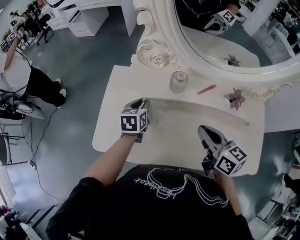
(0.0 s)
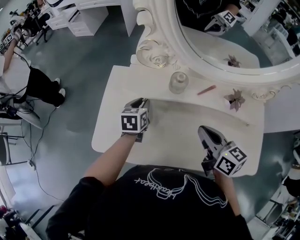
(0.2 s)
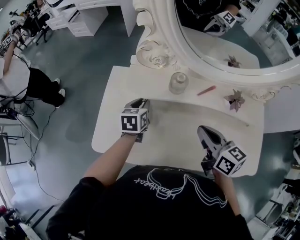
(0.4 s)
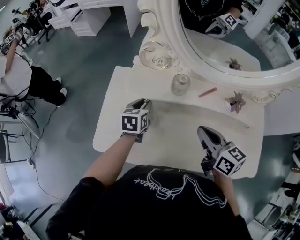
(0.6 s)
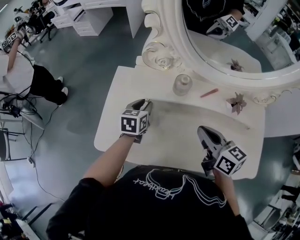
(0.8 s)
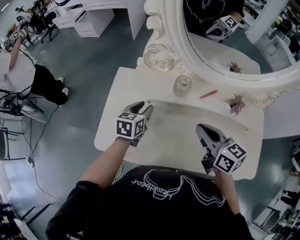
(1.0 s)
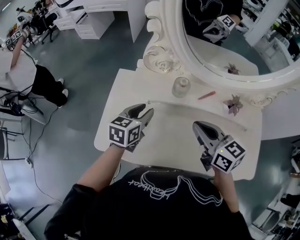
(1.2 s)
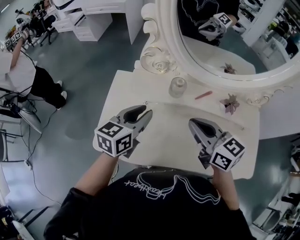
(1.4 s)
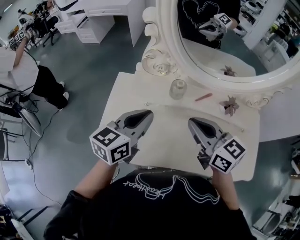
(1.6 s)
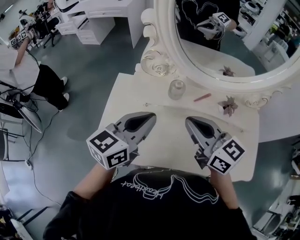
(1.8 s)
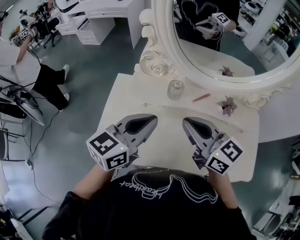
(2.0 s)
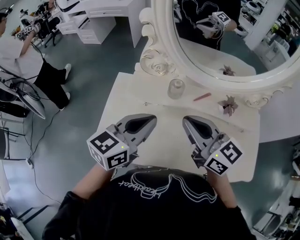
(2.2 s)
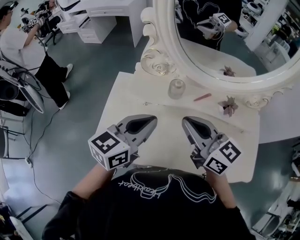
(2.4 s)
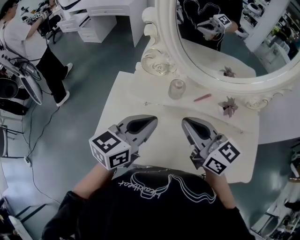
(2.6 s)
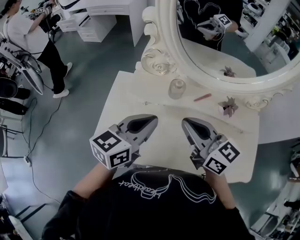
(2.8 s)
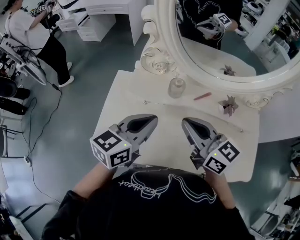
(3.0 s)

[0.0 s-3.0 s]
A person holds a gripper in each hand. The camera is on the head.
0.0 to 1.6 s: The left gripper heads upward and backward, covering roughly 20 cm, and swivels approximately 30 degrees, while the right gripper moves upward and to the left, roughly 10 cm.
1.6 to 3.0 s: The grippers move only a little.

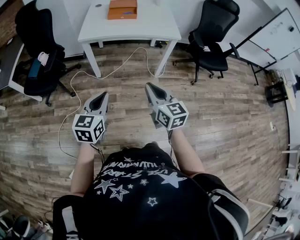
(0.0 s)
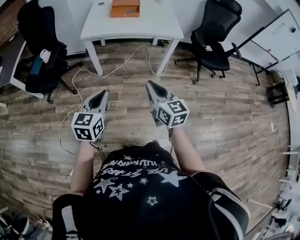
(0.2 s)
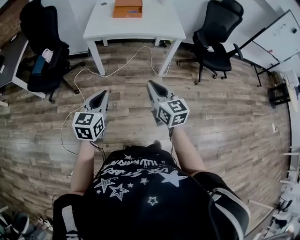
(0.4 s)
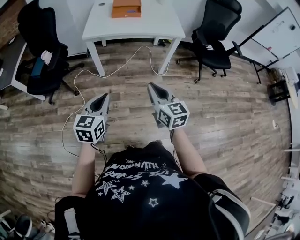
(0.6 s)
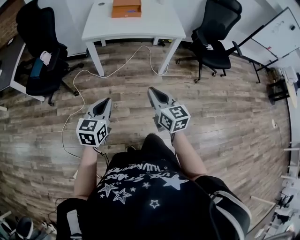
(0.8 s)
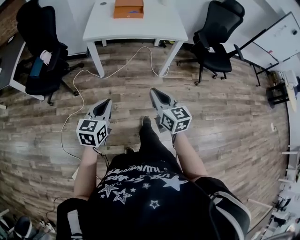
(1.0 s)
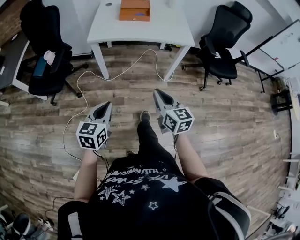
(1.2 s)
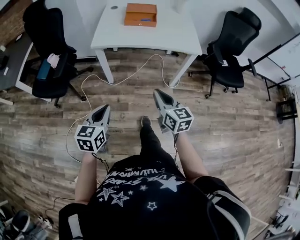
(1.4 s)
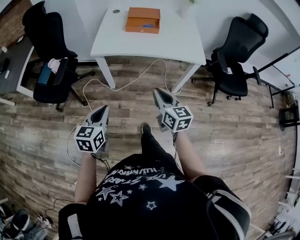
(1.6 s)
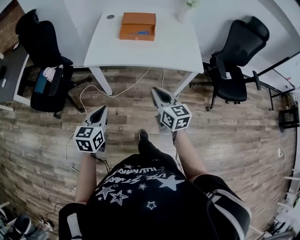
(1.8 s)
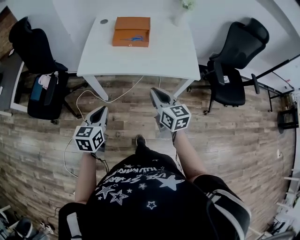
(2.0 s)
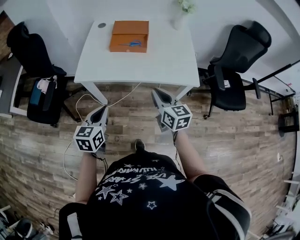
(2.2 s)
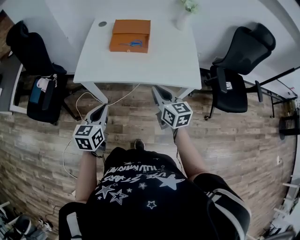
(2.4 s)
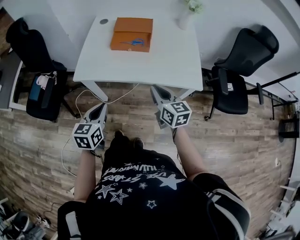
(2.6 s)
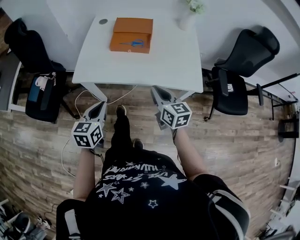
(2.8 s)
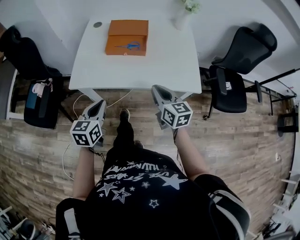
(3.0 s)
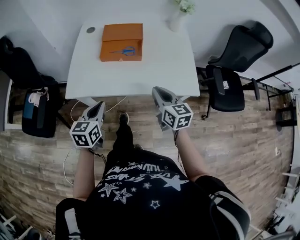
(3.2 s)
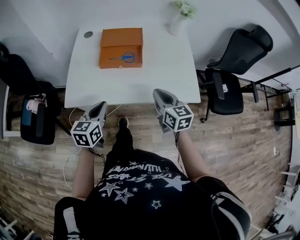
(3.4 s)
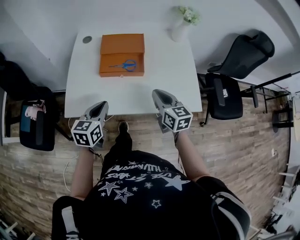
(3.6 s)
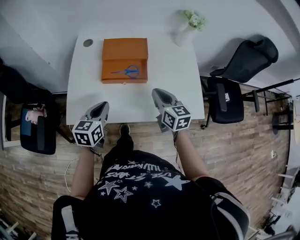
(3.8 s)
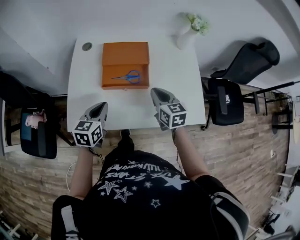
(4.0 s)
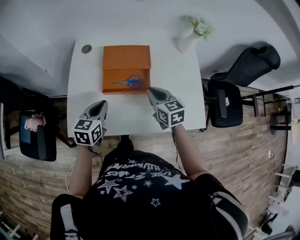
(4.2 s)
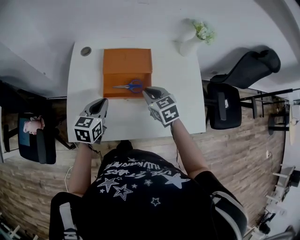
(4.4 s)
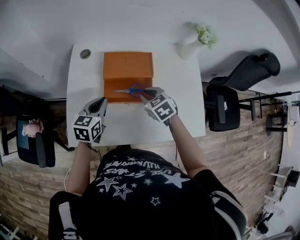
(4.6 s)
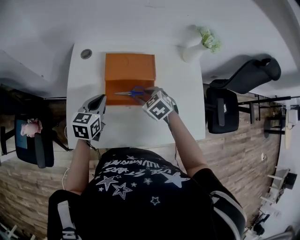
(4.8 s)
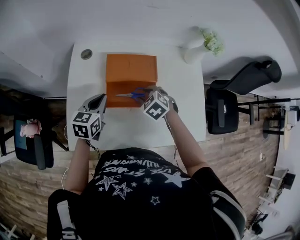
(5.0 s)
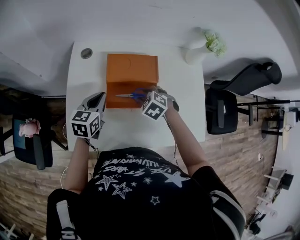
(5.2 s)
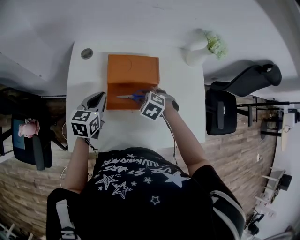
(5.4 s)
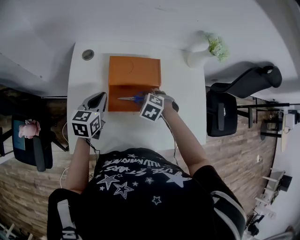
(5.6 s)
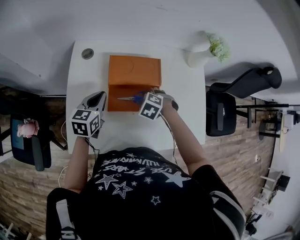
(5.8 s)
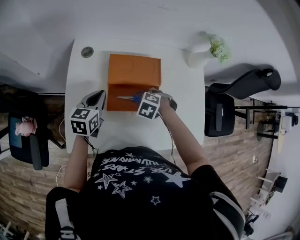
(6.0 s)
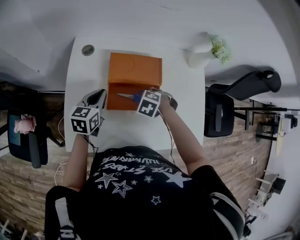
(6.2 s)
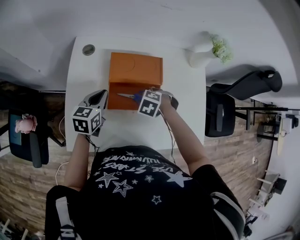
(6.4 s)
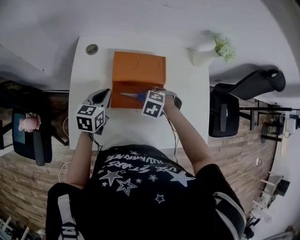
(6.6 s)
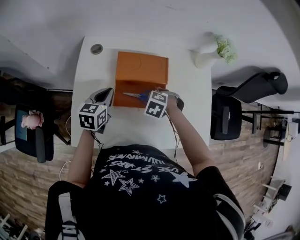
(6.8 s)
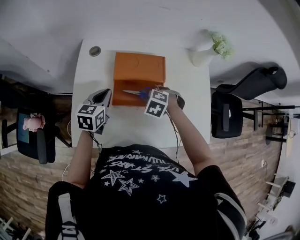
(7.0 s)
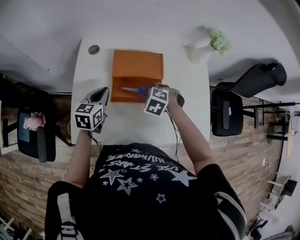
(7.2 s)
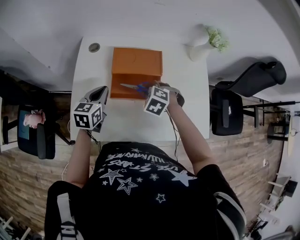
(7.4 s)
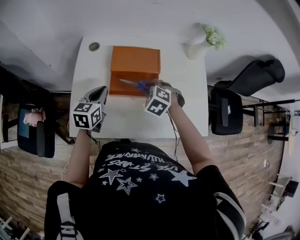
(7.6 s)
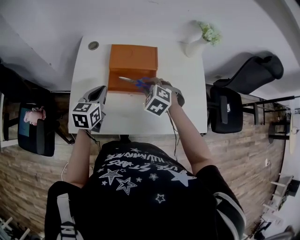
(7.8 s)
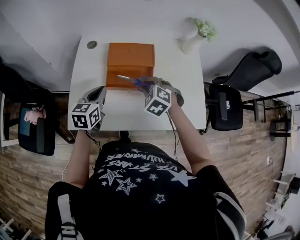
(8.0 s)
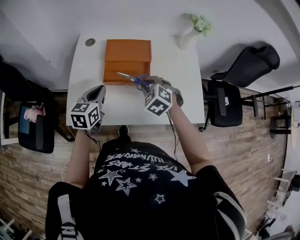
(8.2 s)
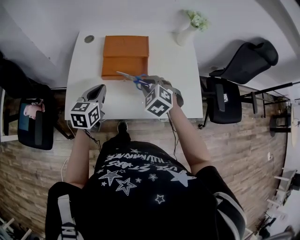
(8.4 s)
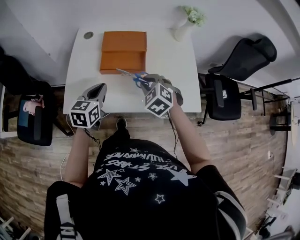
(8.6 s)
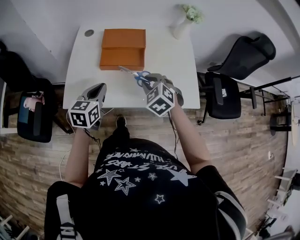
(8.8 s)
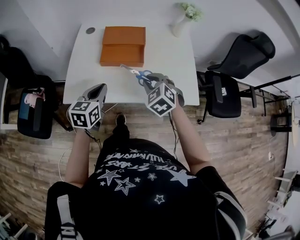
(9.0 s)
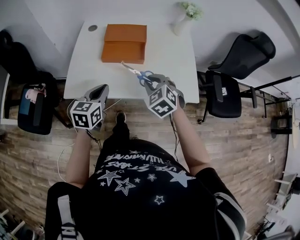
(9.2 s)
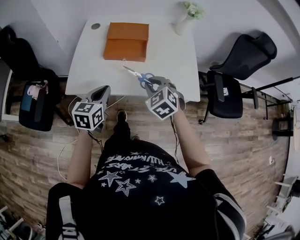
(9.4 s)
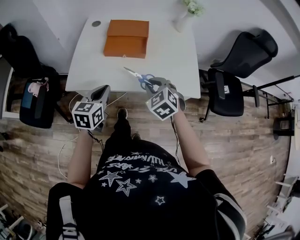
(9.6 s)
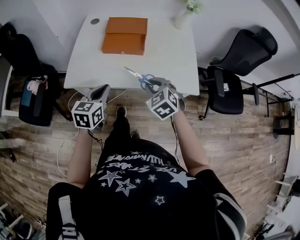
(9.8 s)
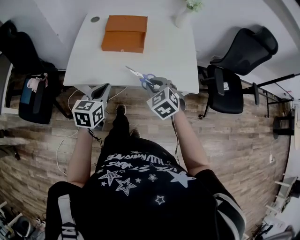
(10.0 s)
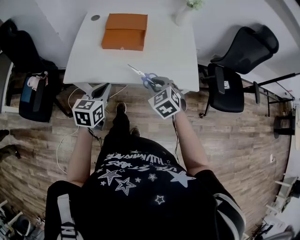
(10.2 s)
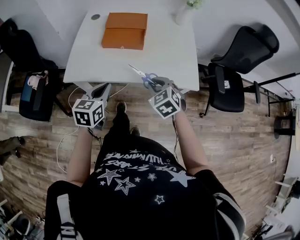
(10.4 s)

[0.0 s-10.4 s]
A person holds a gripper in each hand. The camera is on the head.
0.0 to 1.4 s: The right gripper shifts some 15 cm forward. The left gripper heads forward, to the left and downward, covering roughly 15 cm.
1.4 to 3.0 s: Both grippers are carried forward, approximately 40 cm.
3.0 to 4.4 s: Both grippers travel together forward, approximately 35 cm. The right gripper changes its angle by about 30 degrees.
4.4 to 6.0 s: The left gripper shifts by some 15 cm. Meanwhile the right gripper goes roughly 10 cm downward, and angles its fingers downward, by approximately 40 degrees.
6.0 to 7.4 s: The left gripper ends up approximately 5 cm from where it was. The right gripper travels upward by some 5 cm.
7.4 to 9.0 s: The left gripper is displaced backward by roughly 25 cm; the right gripper travels backward, upward and to the right by roughly 25 cm, and rotates about 30 degrees.
9.0 to 10.4 s: The two grippers go about 10 cm backward.

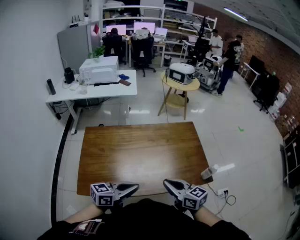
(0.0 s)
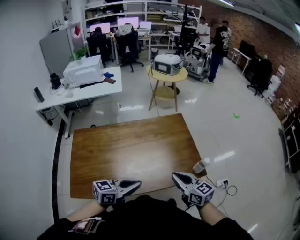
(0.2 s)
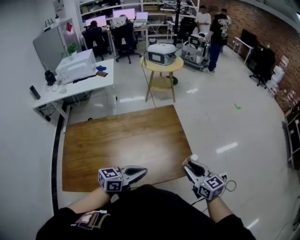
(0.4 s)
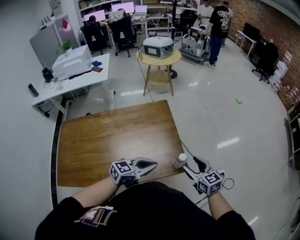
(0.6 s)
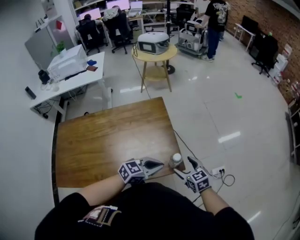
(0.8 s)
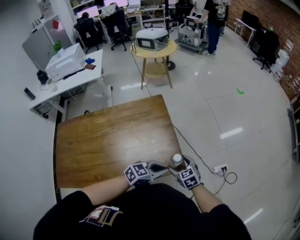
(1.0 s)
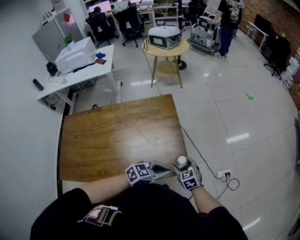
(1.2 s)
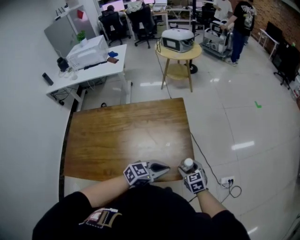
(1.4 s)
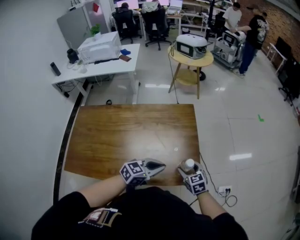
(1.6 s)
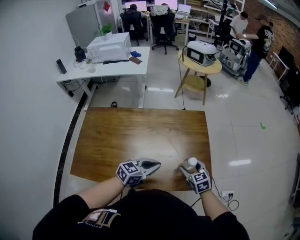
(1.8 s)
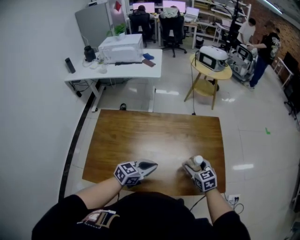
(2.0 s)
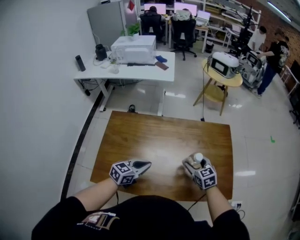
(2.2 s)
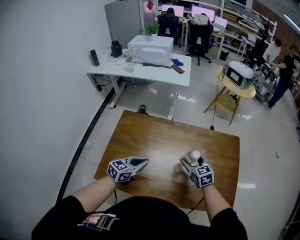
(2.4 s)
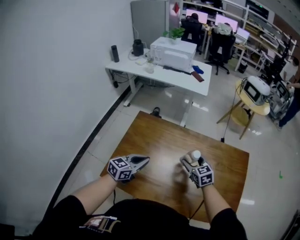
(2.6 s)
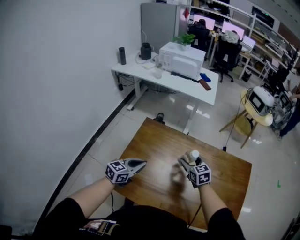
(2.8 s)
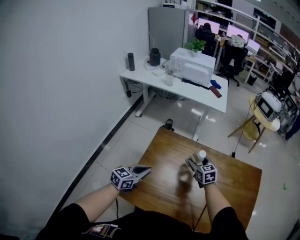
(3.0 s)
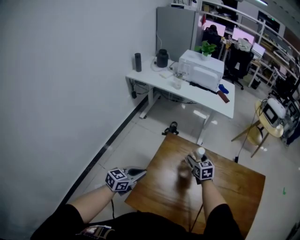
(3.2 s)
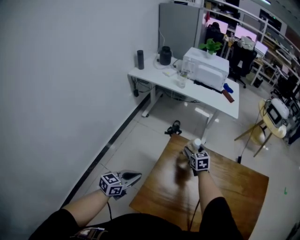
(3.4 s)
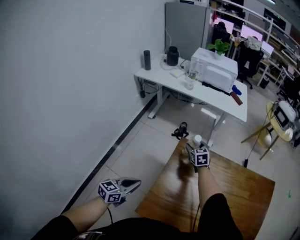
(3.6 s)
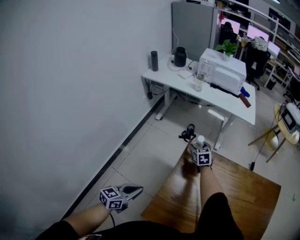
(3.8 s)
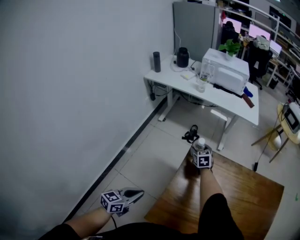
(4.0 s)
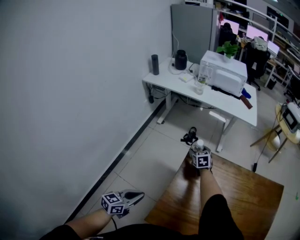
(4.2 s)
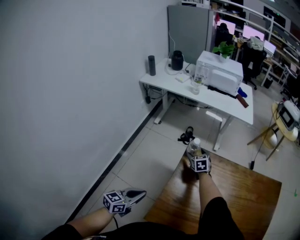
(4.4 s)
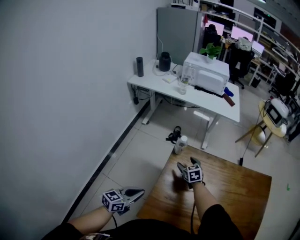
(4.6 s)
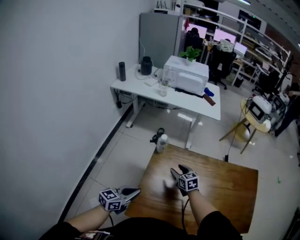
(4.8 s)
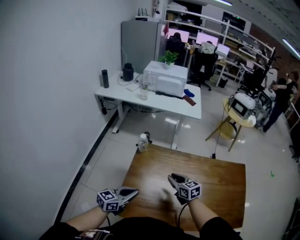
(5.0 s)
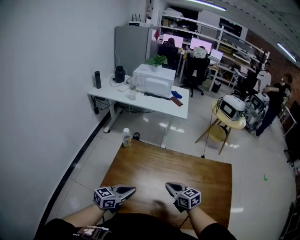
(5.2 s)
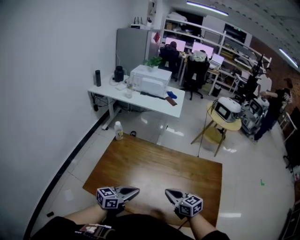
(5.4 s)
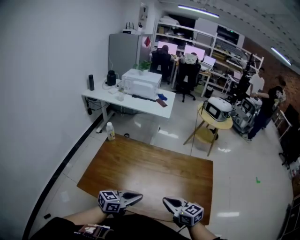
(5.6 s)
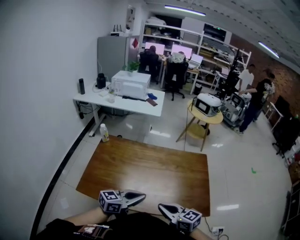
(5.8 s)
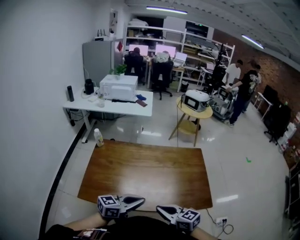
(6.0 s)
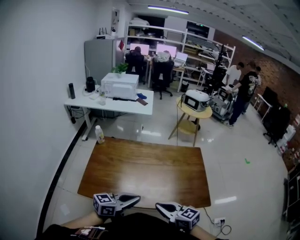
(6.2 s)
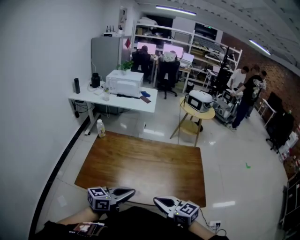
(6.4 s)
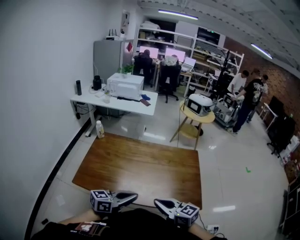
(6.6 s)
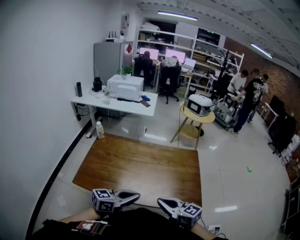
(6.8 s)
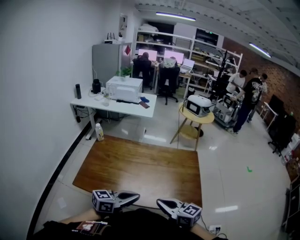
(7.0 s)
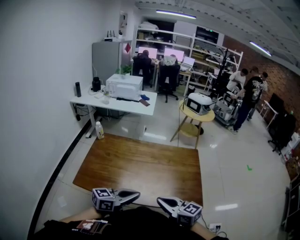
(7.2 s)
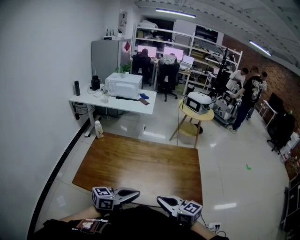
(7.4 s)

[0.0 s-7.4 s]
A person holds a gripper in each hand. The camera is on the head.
0.0 to 1.4 s: The right gripper goes approximately 40 cm forward, to the right and downward, rotates some 40 degrees, and opens. The left gripper shifts approximately 40 cm to the right, forward and downward, and changes its angle by some 20 degrees.
1.4 to 3.0 s: The two grippers travel together, roughly 70 cm. The right gripper rotates about 20 degrees. Meanwhile the left gripper rotates roughly 50 degrees.
3.0 to 4.4 s: The right gripper travels to the left and forward by roughly 30 cm. The left gripper moves to the left, about 20 cm.
4.4 to 6.0 s: Both grippers are carried to the right and backward, about 60 cm. The left gripper rotates roughly 40 degrees, while the right gripper swivels about 30 degrees, and closes up.
6.0 to 7.4 s: The right gripper is displaced to the right by some 5 cm.

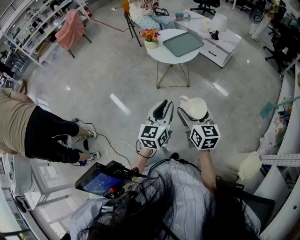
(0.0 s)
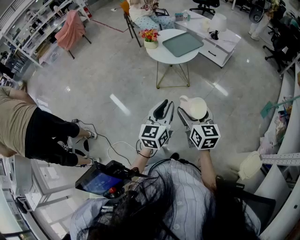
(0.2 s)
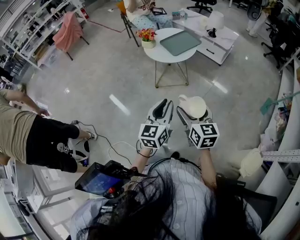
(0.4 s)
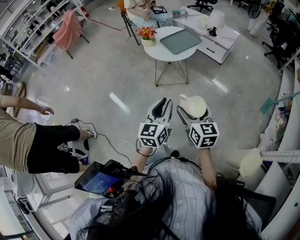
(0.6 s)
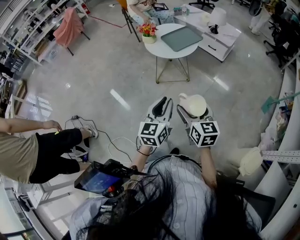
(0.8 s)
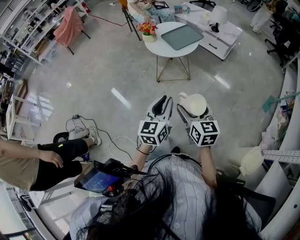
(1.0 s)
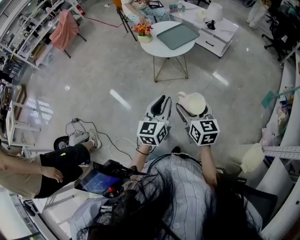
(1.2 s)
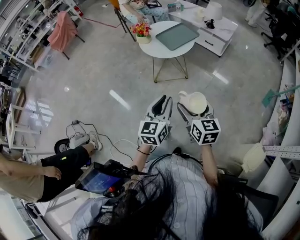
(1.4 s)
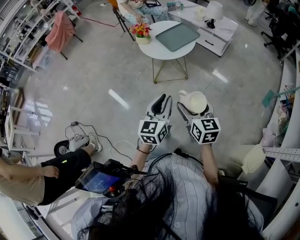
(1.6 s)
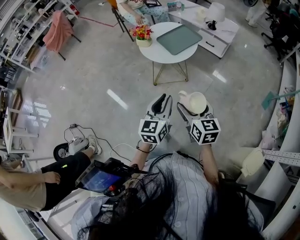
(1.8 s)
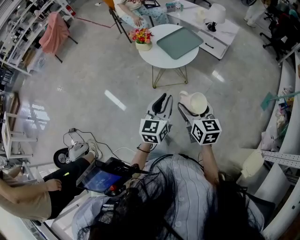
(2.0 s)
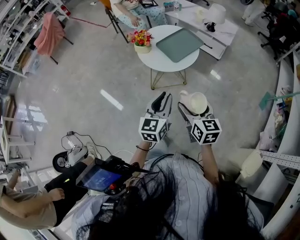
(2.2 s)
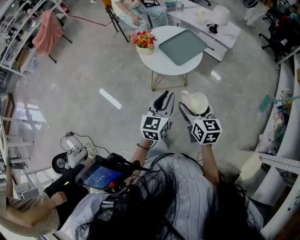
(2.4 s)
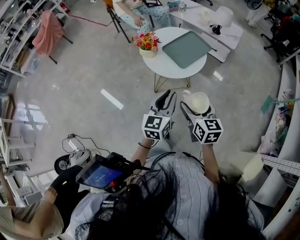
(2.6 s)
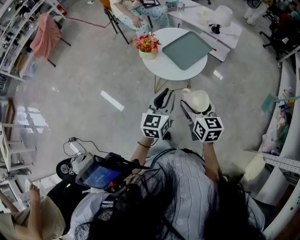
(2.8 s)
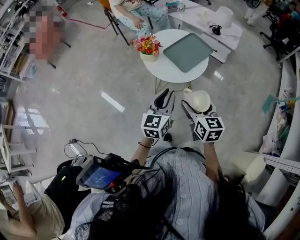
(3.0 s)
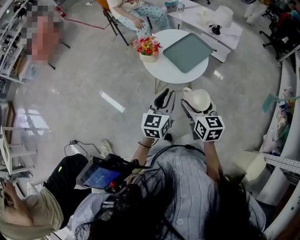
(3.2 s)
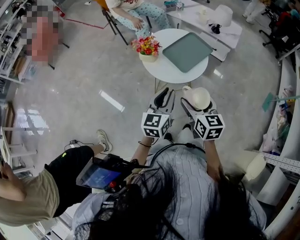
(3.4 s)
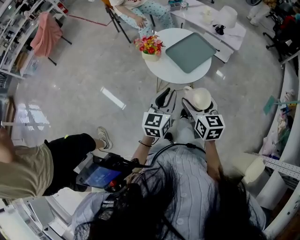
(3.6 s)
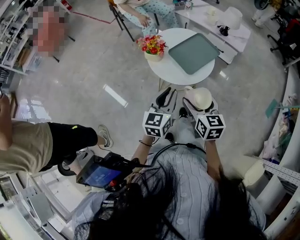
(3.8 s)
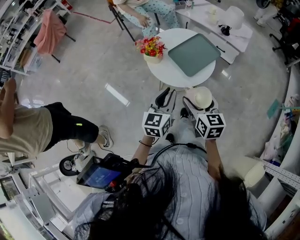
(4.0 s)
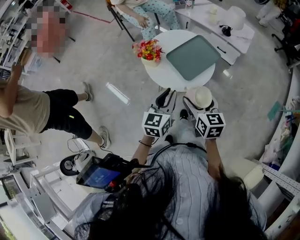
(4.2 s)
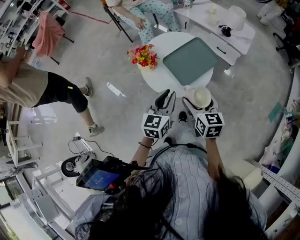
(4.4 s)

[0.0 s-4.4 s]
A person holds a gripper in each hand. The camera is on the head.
0.0 to 1.4 s: There are only small adjustments of the grippers.
1.4 to 3.0 s: The two grippers go roughly 30 cm forward and to the left.
3.0 to 4.4 s: Both grippers move forward, some 15 cm.
